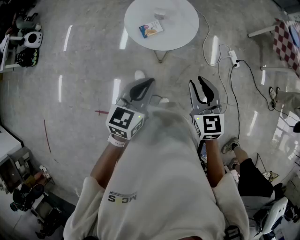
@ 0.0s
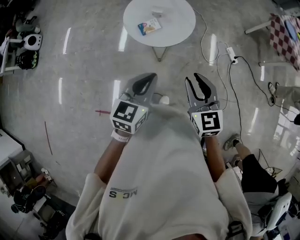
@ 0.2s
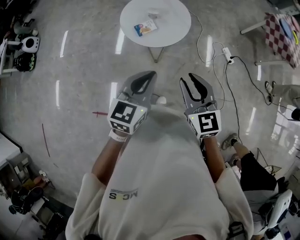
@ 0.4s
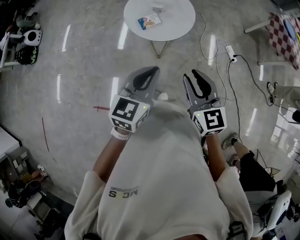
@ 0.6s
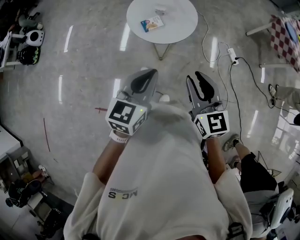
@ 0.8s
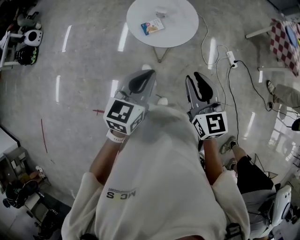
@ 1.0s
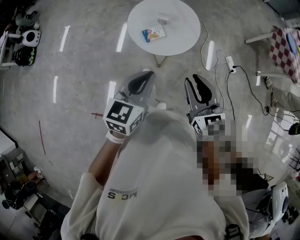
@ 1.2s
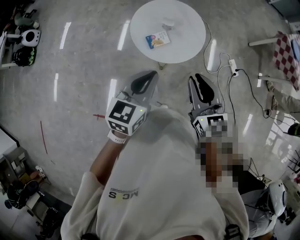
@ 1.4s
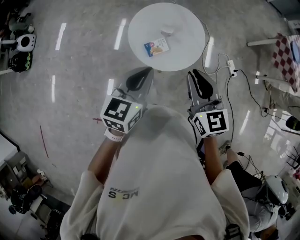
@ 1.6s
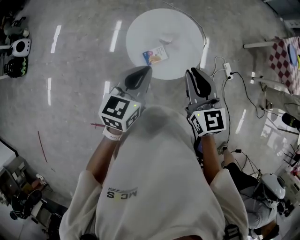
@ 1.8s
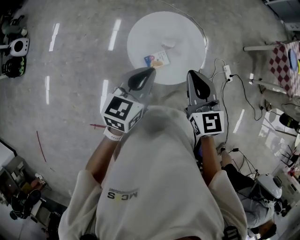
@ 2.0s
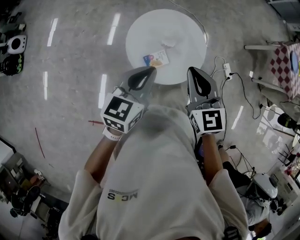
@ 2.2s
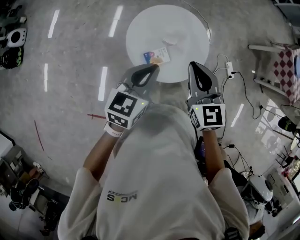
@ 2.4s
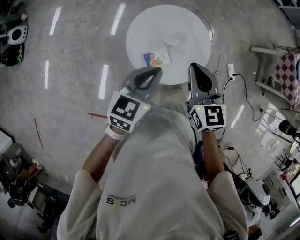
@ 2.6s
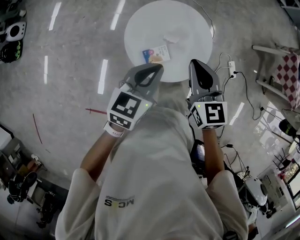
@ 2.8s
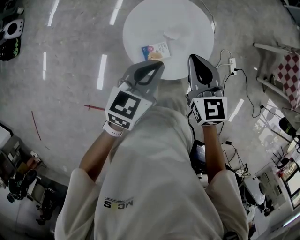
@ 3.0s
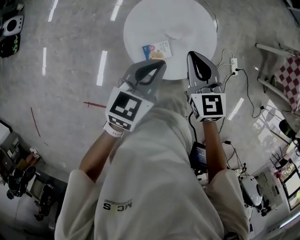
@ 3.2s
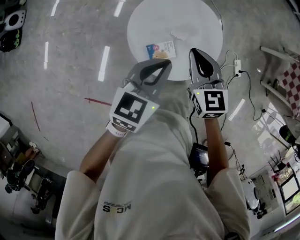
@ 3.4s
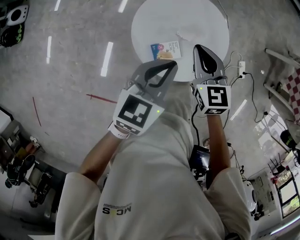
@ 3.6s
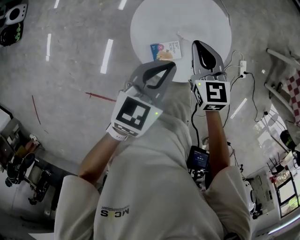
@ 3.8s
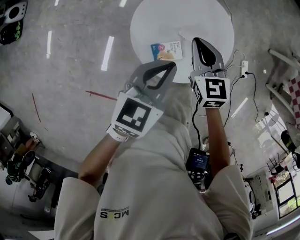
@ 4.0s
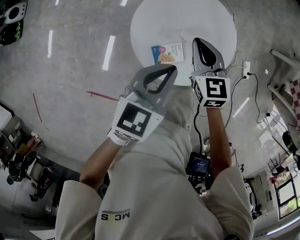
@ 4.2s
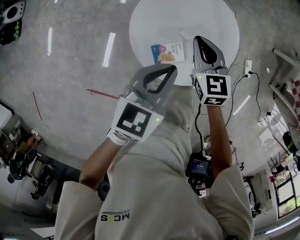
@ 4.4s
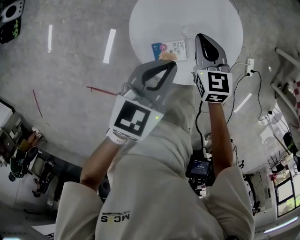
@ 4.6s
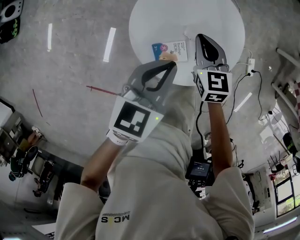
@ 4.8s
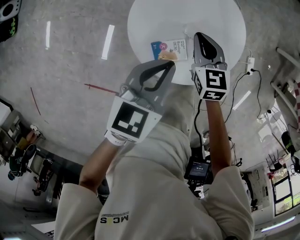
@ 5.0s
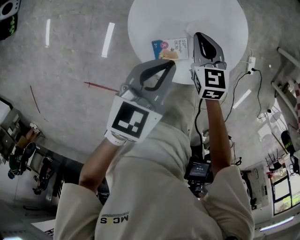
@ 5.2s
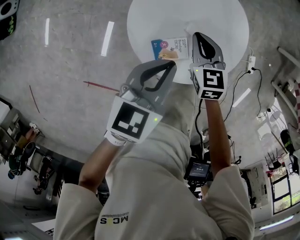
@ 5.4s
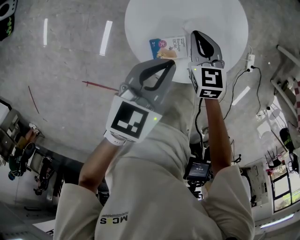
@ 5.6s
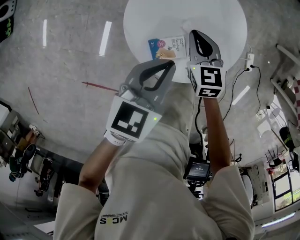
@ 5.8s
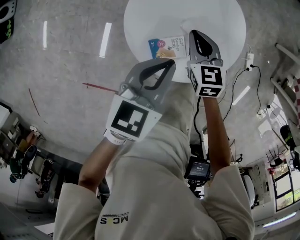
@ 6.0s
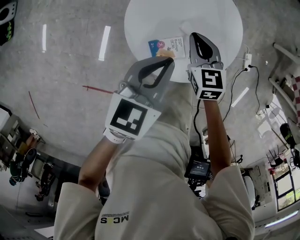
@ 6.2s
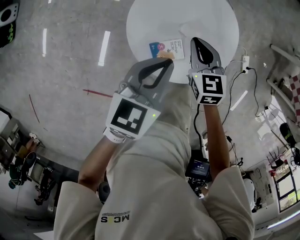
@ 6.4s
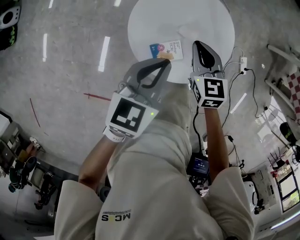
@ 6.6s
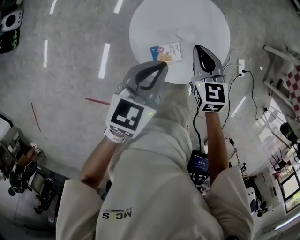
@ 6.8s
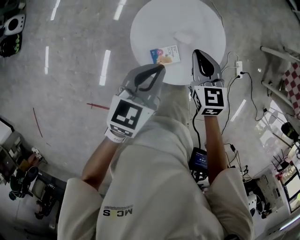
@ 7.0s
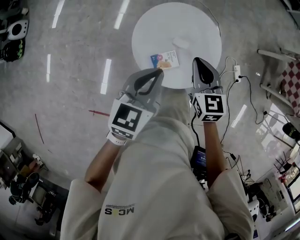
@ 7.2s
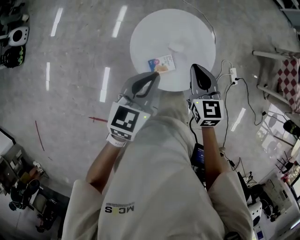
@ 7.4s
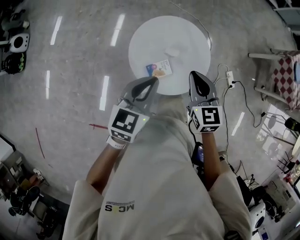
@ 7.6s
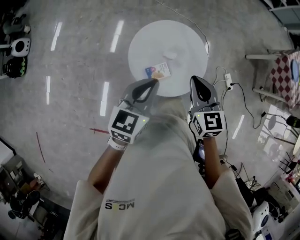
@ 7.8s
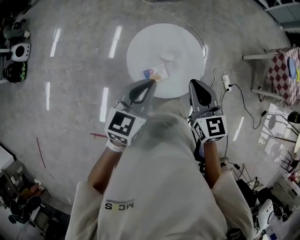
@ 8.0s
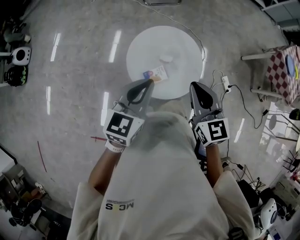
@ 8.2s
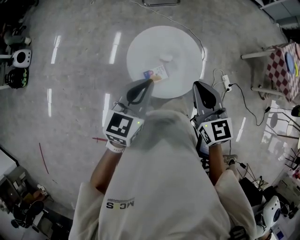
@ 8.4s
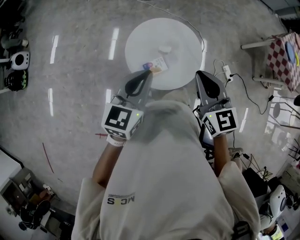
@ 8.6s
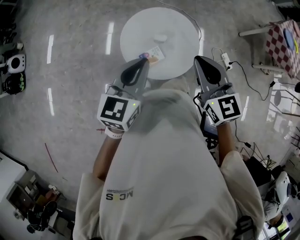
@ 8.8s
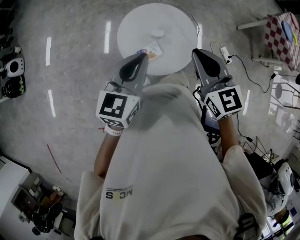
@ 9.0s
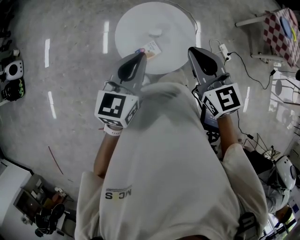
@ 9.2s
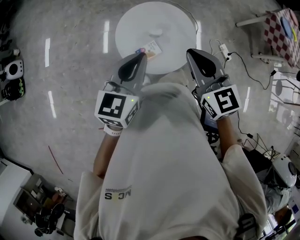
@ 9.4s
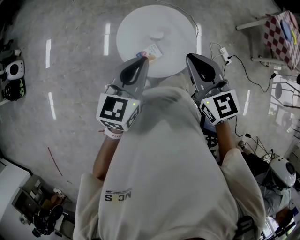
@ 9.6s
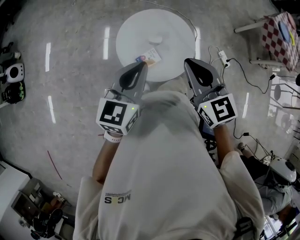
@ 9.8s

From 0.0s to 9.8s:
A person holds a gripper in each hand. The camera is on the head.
From 0.0s to 1.4s: The grippers both shift forward and to the left by some 15 cm.
From 1.4s to 2.8s: The two grippers go roughly 25 cm forward.
From 2.8s to 4.2s: The right gripper heads downward and forward, covering roughly 20 cm; the left gripper travels downward and forward by some 10 cm.
From 4.2s to 5.6s: The right gripper shifts approximately 10 cm downward. The left gripper goes some 5 cm downward.
From 5.6s to 7.0s: The left gripper goes some 10 cm upward, while the right gripper heads upward, covering some 15 cm.
From 7.0s to 8.4s: The right gripper moves upward and backward, approximately 25 cm; the left gripper heads upward and backward, covering roughly 15 cm.
From 8.4s to 9.8s: The grippers move only a little.

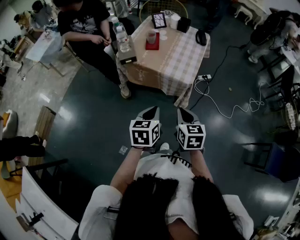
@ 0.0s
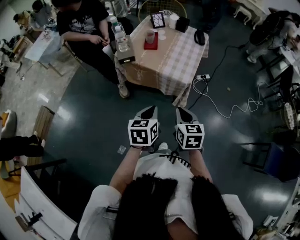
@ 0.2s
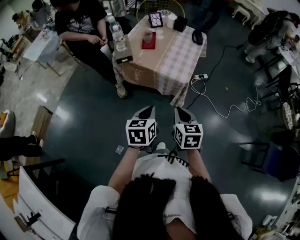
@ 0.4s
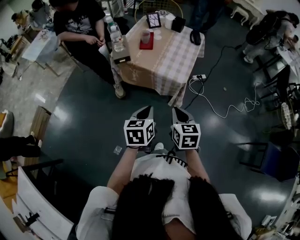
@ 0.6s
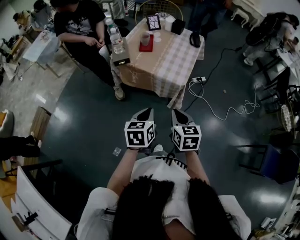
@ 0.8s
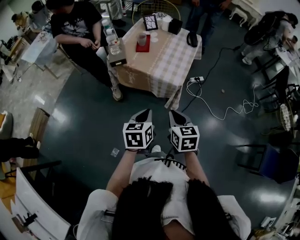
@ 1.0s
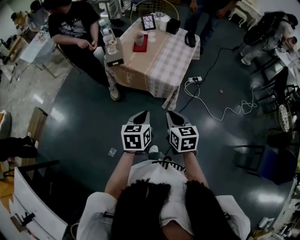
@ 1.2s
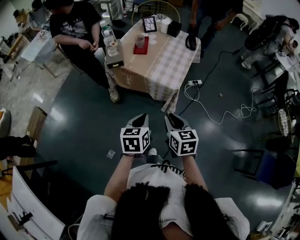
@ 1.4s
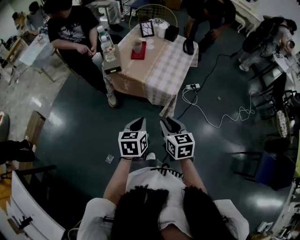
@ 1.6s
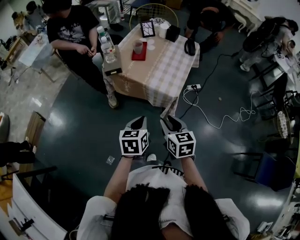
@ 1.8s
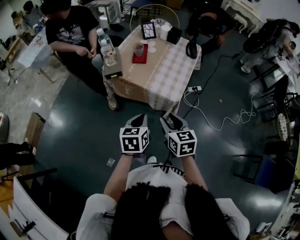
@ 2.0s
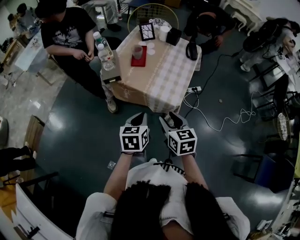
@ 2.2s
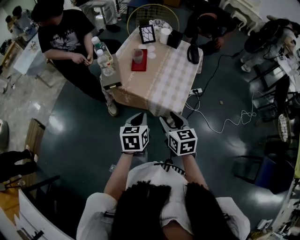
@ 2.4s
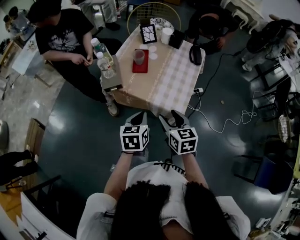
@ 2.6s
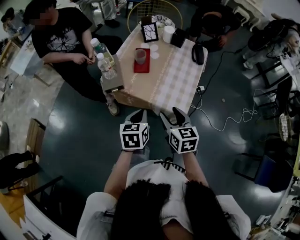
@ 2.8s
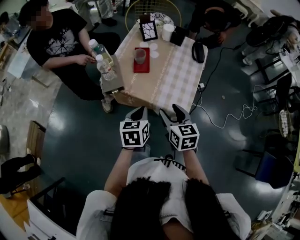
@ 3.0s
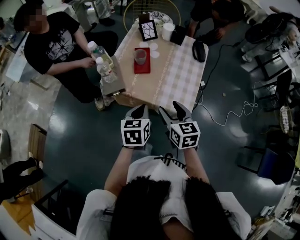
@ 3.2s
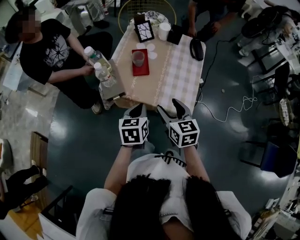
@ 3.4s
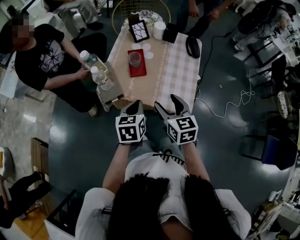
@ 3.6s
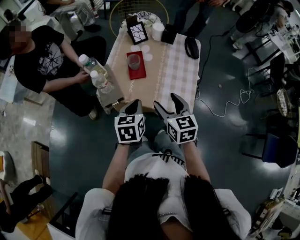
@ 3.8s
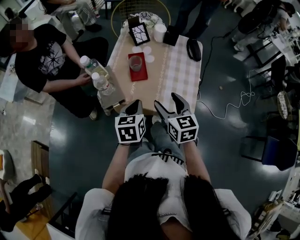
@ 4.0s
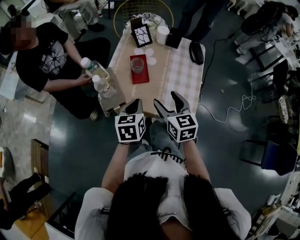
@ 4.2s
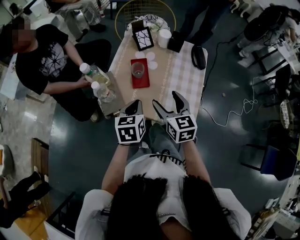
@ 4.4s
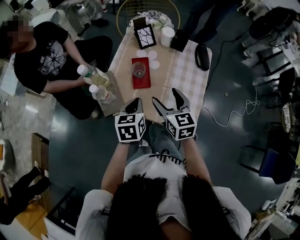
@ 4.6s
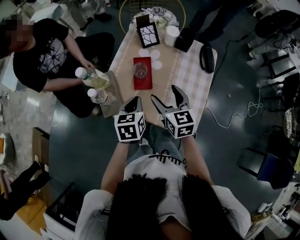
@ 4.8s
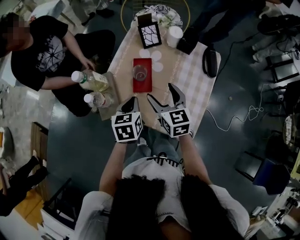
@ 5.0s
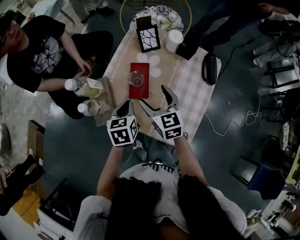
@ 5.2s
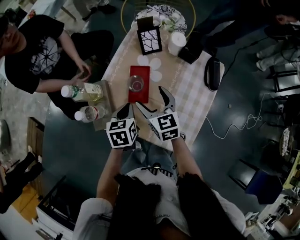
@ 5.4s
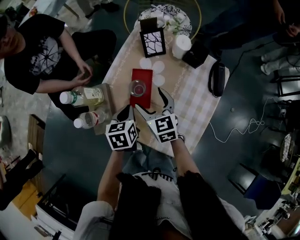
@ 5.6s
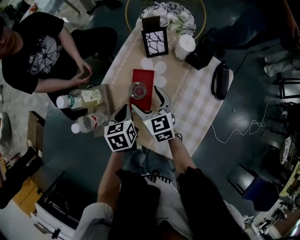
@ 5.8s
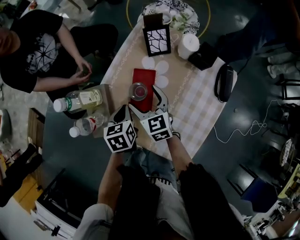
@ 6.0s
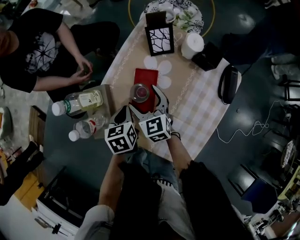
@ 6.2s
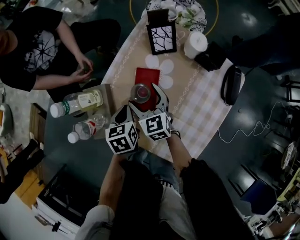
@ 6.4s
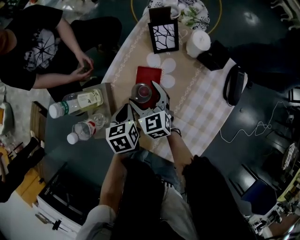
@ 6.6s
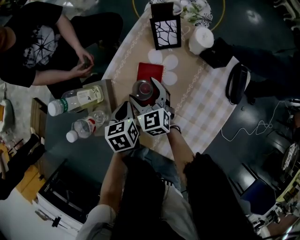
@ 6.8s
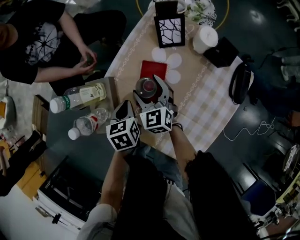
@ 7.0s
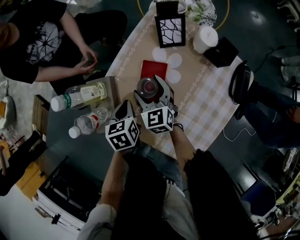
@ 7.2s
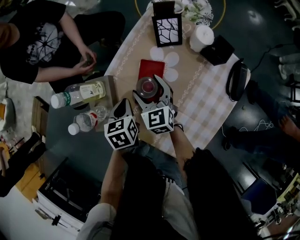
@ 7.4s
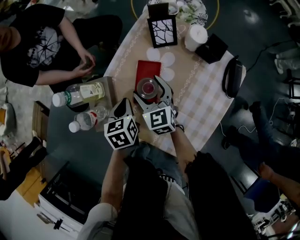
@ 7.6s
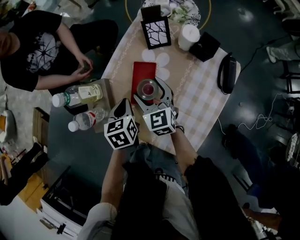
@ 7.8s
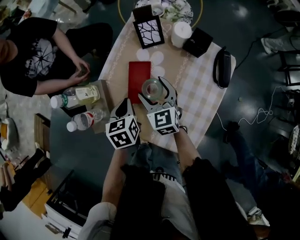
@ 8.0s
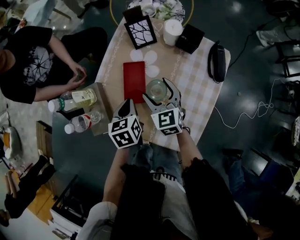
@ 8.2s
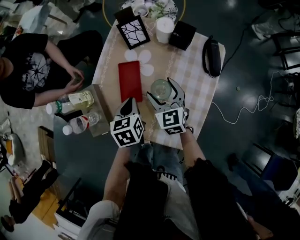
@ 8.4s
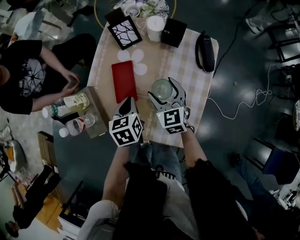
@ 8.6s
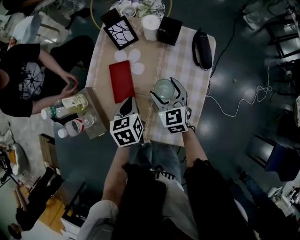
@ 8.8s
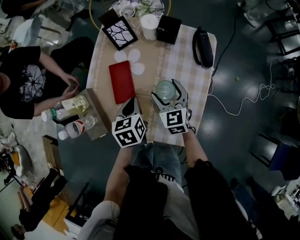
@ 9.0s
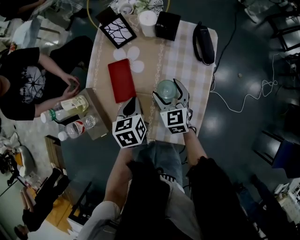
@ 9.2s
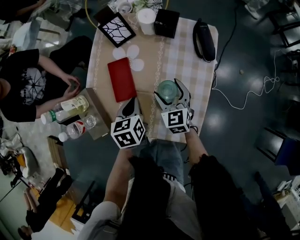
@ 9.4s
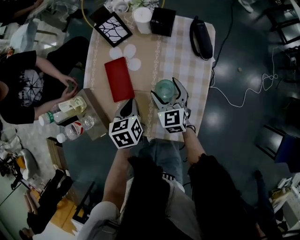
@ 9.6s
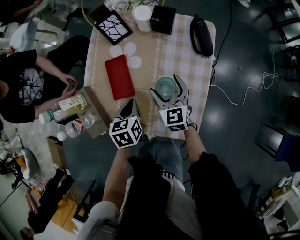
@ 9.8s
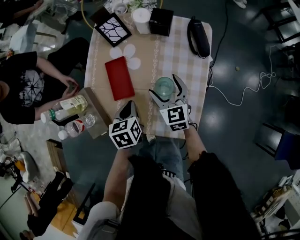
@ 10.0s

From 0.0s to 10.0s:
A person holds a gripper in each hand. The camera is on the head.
From 0.0s to 1.4s: There are only small adjustments of the grippers.
From 1.4s to 2.8s: The grippers both shift forward by some 20 cm. The right gripper opens its fingers.
From 2.8s to 4.2s: Both grippers move forward, roughly 15 cm.
From 4.2s to 5.8s: The grippers both shift forward and downward by roughly 25 cm. The right gripper swivels some 20 degrees; the left gripper changes its angle by about 30 degrees.
From 5.8s to 7.2s: The left gripper ends up about 5 cm from where it was, while the right gripper travels downward by approximately 5 cm.
From 7.2s to 8.6s: The right gripper heads to the right and backward, covering about 20 cm; the left gripper travels to the right by about 10 cm.
From 8.6s to 10.0s: The left gripper changes place by approximately 5 cm.

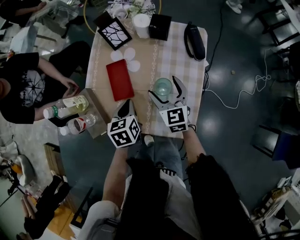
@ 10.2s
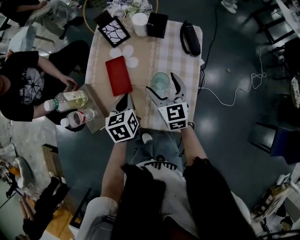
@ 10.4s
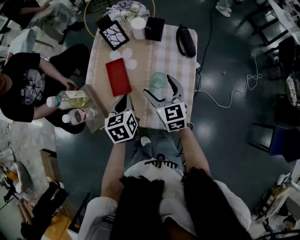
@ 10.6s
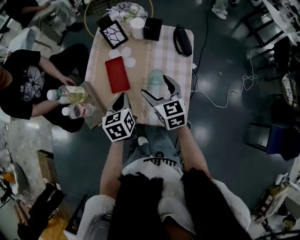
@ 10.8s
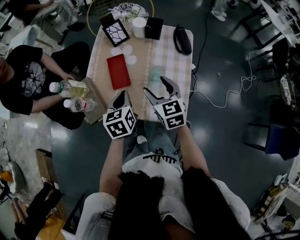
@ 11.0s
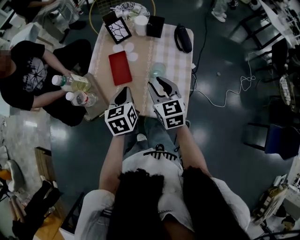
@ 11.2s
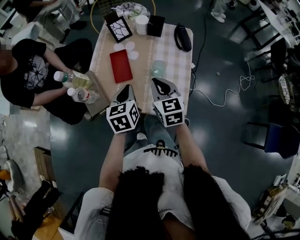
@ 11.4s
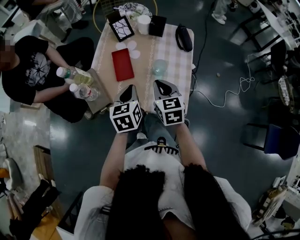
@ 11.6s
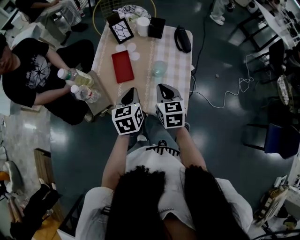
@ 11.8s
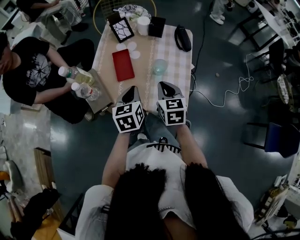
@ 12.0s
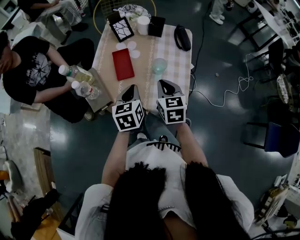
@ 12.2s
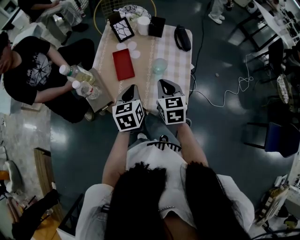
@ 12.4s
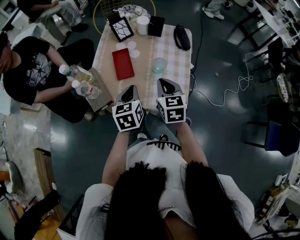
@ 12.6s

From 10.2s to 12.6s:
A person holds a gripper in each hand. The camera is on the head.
From 10.2s to 11.4s: The right gripper travels backward and upward by approximately 15 cm, and closes its fingers, while the left gripper goes approximately 10 cm upward and backward.
From 11.4s to 12.6s: There are only small adjustments of the grippers.

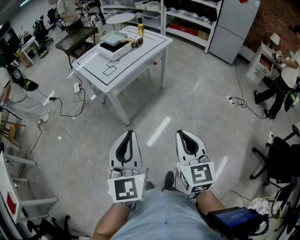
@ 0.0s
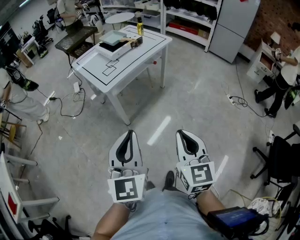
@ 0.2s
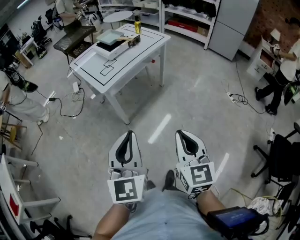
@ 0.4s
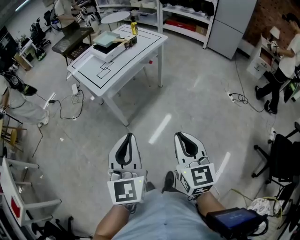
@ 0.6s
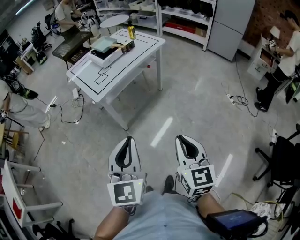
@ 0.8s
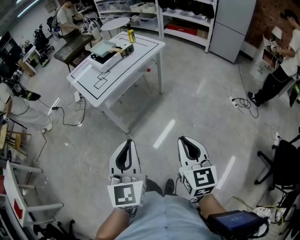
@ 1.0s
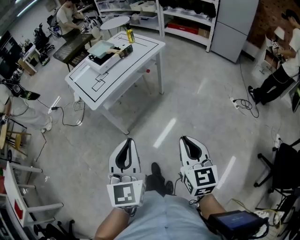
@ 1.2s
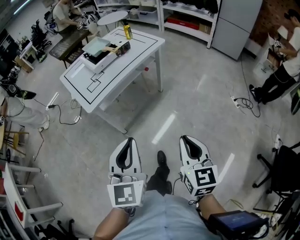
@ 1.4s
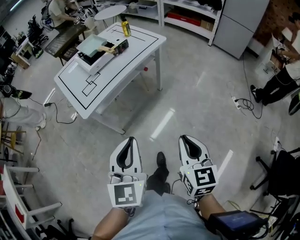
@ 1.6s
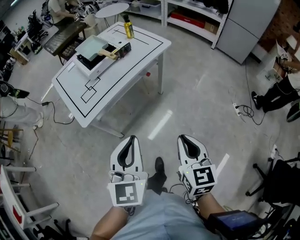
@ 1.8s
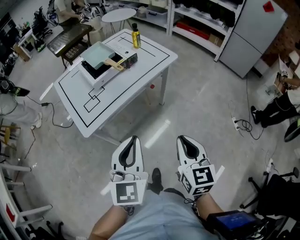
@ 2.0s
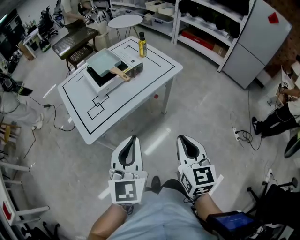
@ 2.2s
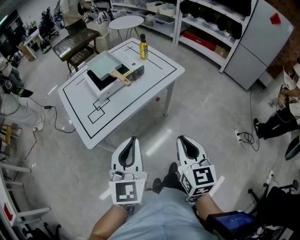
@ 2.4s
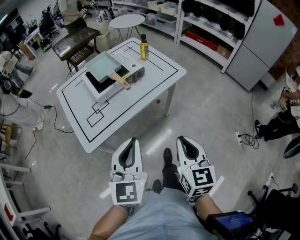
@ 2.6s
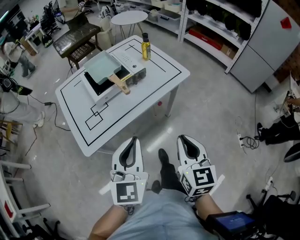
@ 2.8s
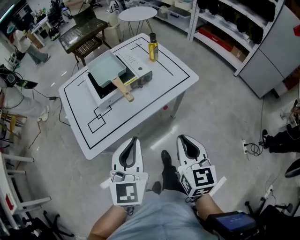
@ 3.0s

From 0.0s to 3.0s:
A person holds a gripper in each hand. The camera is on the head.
From 0.0s to 1.6s: Both grippers move forward and to the right, some 25 cm.
From 1.6s to 3.0s: Both grippers move forward, about 35 cm.
